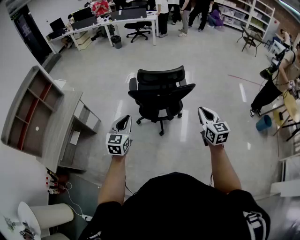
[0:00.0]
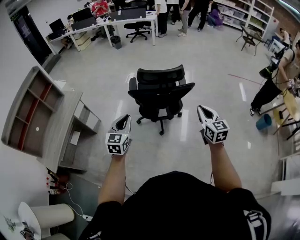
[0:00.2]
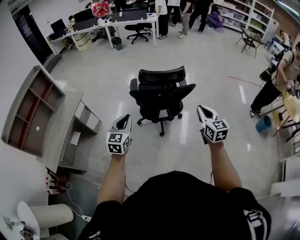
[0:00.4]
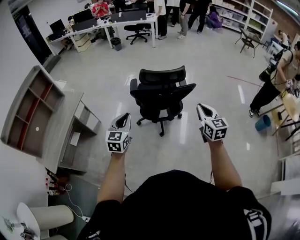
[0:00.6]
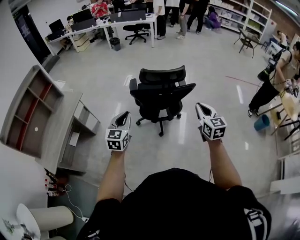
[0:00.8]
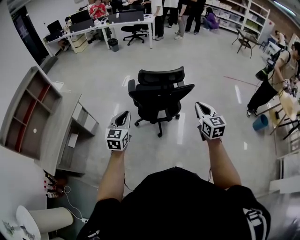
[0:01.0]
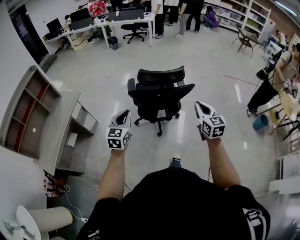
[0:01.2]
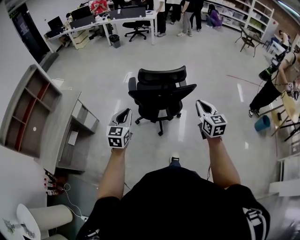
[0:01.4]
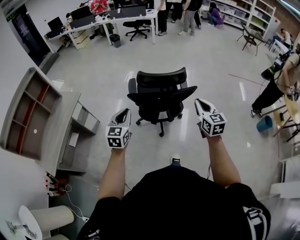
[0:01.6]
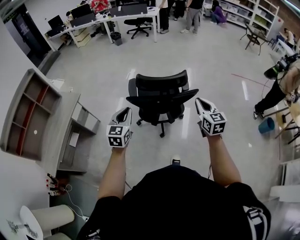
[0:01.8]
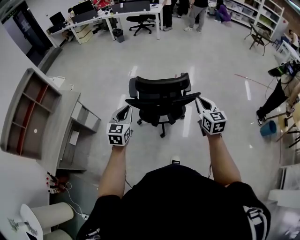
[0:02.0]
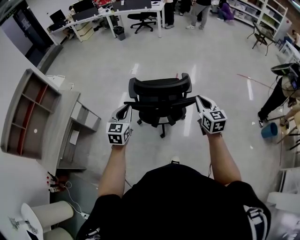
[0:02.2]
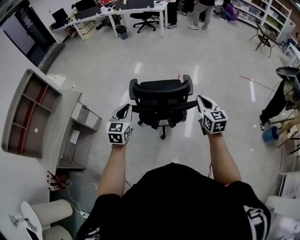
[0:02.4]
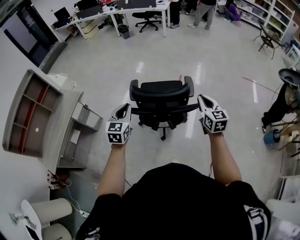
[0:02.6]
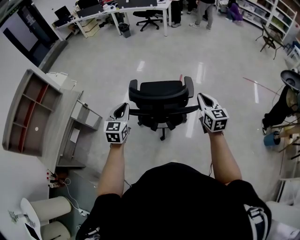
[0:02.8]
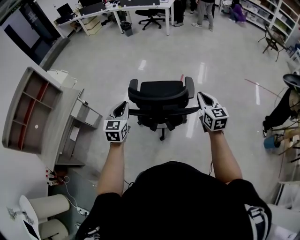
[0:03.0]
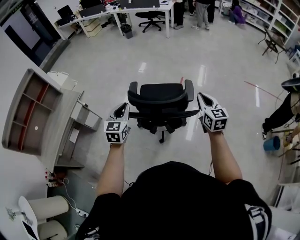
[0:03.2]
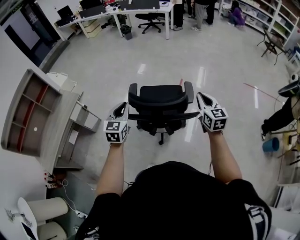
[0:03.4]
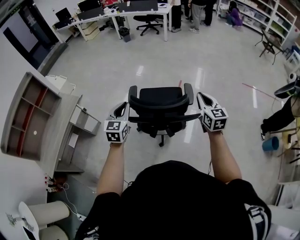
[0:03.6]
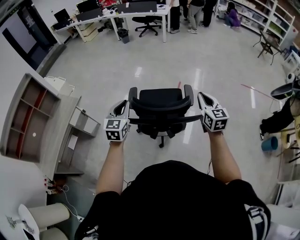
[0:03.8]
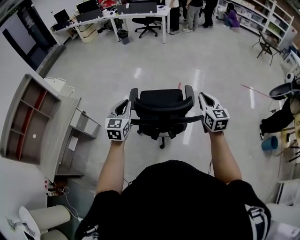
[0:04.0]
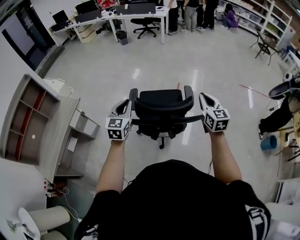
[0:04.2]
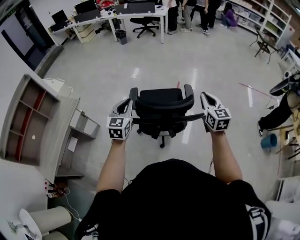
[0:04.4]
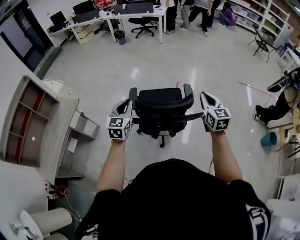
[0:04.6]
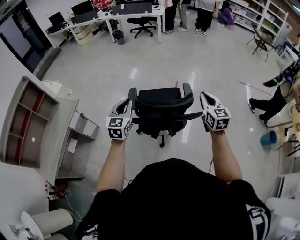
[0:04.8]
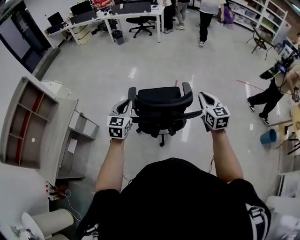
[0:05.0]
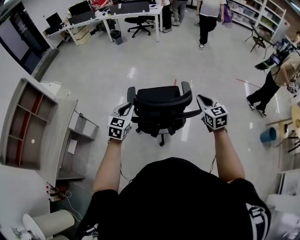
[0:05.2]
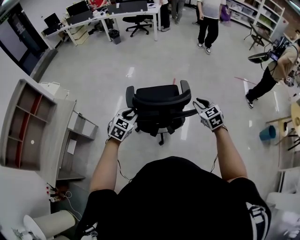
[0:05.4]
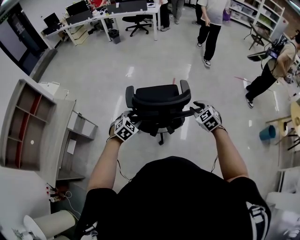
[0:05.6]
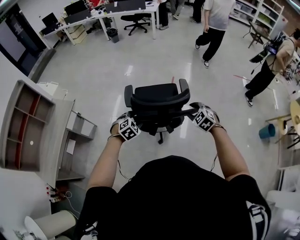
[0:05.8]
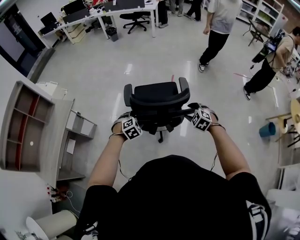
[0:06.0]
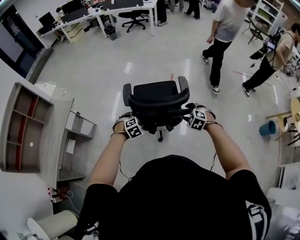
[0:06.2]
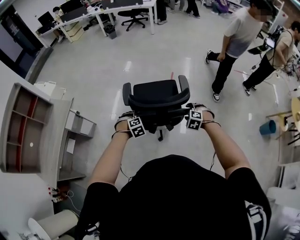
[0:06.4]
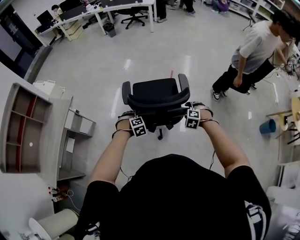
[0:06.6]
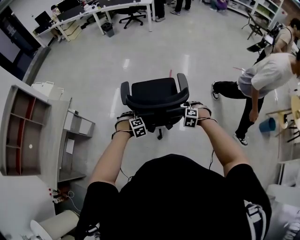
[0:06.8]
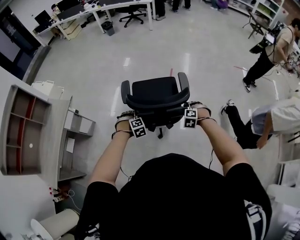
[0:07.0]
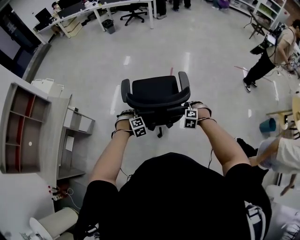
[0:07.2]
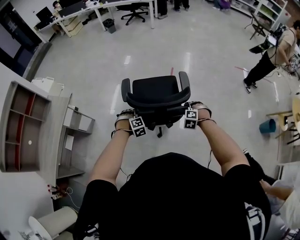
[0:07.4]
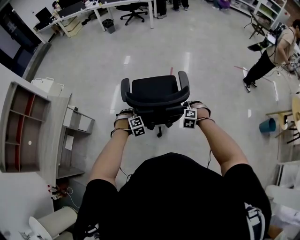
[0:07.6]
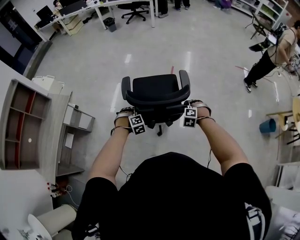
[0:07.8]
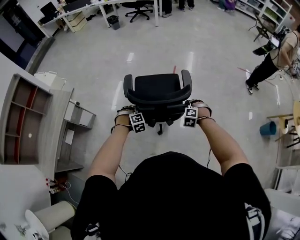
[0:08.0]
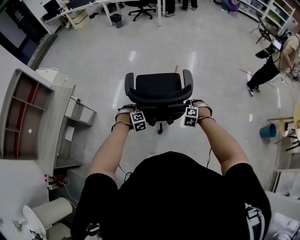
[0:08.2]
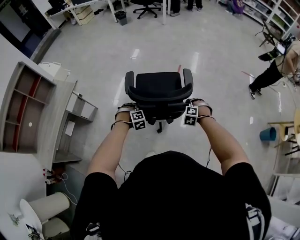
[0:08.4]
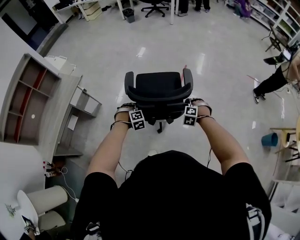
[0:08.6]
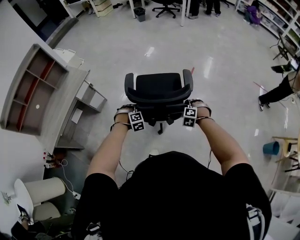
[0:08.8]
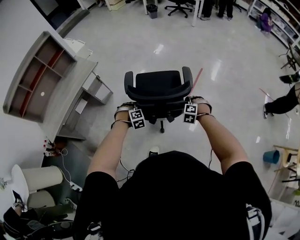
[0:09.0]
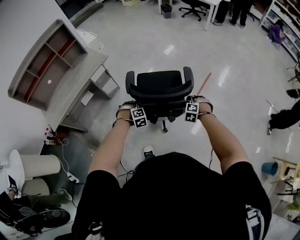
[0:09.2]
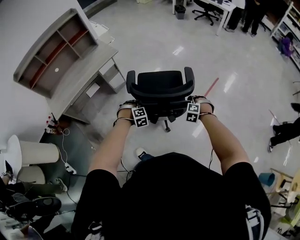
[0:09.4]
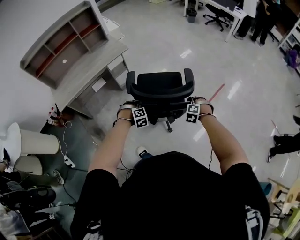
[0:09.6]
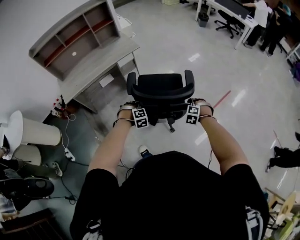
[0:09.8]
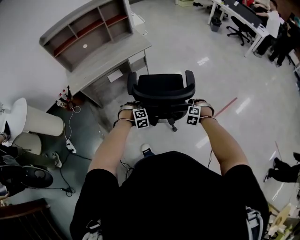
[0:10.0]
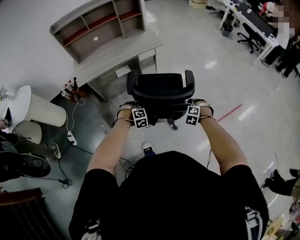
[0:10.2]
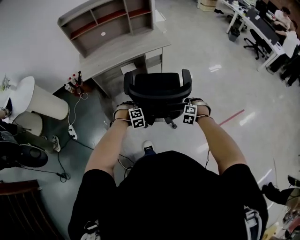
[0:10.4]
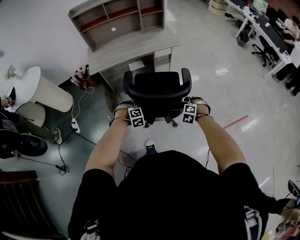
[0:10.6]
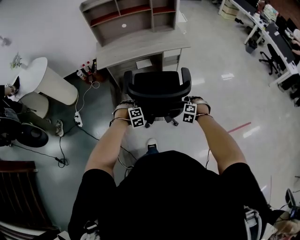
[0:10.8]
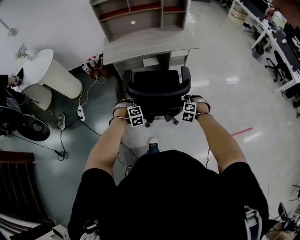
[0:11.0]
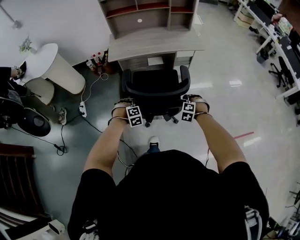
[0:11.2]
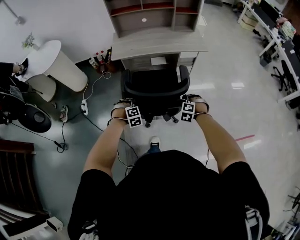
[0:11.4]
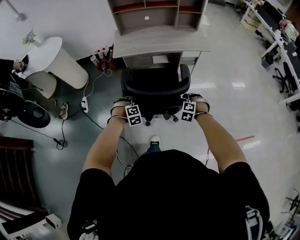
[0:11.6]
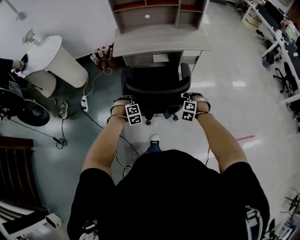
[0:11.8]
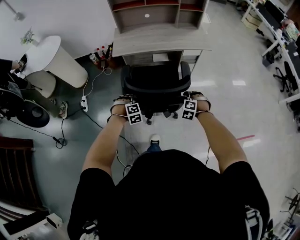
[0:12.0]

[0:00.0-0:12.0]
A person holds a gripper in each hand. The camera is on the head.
0:00.0 to 0:01.6: Both grippers travel together forward, about 10 cm.
0:01.6 to 0:03.0: Both grippers travel together forward, roughly 25 cm.
0:03.0 to 0:04.4: The right gripper changes place by some 5 cm; the left gripper shifts roughly 5 cm forward.
0:04.4 to 0:06.0: The two grippers go about 20 cm downward. The left gripper points its fingers roughly 50 degrees further downward, and opens its fingers; the right gripper tips its fingers downward by approximately 40 degrees, and opens.
0:06.0 to 0:07.6: Both grippers move downward, some 10 cm. The right gripper rotates about 30 degrees. Meanwhile the left gripper rotates approximately 20 degrees.
0:07.6 to 0:09.0: The left gripper heads to the left and backward, covering approximately 15 cm, while the right gripper travels to the left by approximately 10 cm.
0:09.0 to 0:10.4: The left gripper moves approximately 35 cm, and swivels roughly 30 degrees. Meanwhile the right gripper shifts by approximately 35 cm, and rotates roughly 30 degrees.
0:10.4 to 0:12.0: The right gripper travels to the left and forward by approximately 25 cm. The left gripper is displaced to the left by approximately 20 cm.

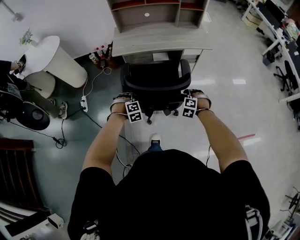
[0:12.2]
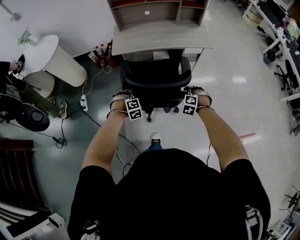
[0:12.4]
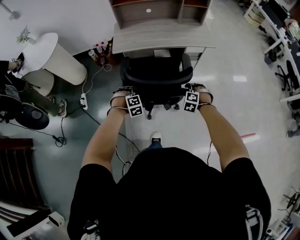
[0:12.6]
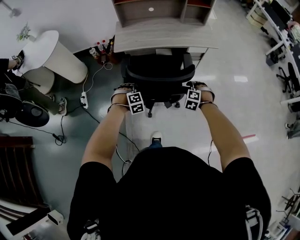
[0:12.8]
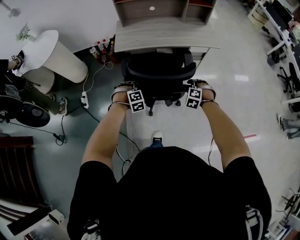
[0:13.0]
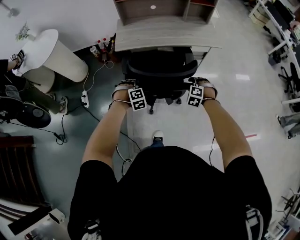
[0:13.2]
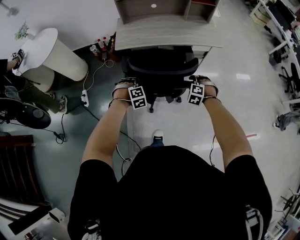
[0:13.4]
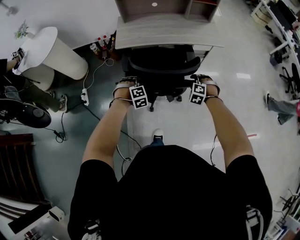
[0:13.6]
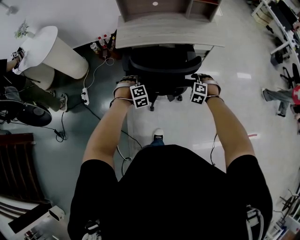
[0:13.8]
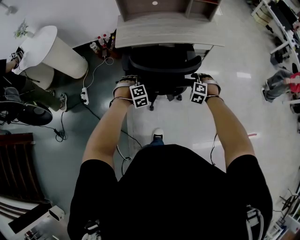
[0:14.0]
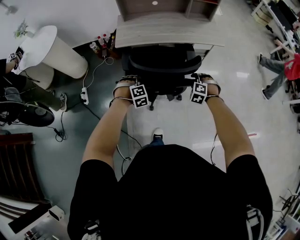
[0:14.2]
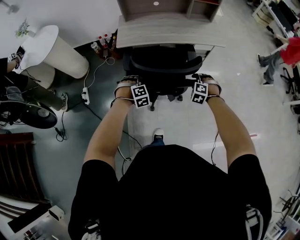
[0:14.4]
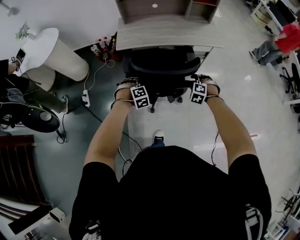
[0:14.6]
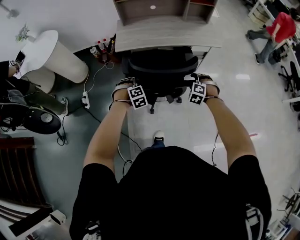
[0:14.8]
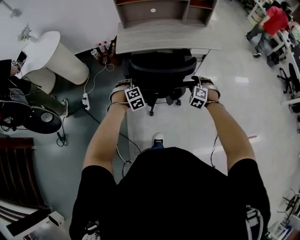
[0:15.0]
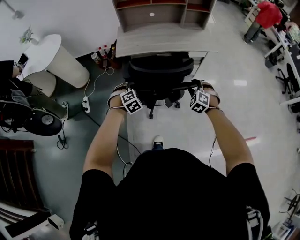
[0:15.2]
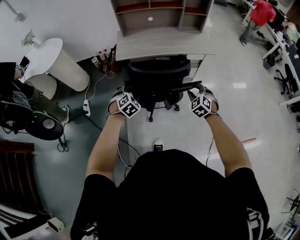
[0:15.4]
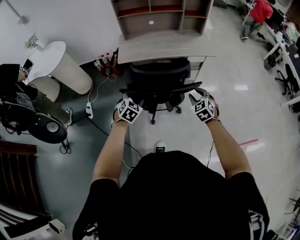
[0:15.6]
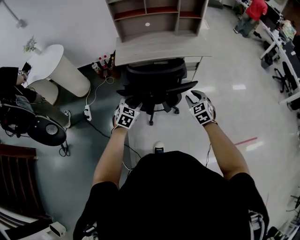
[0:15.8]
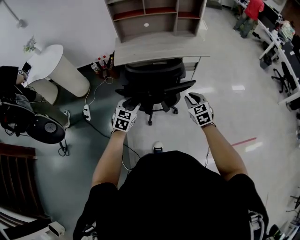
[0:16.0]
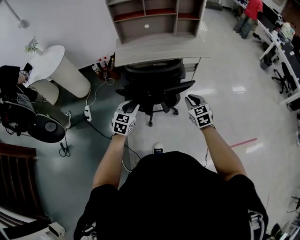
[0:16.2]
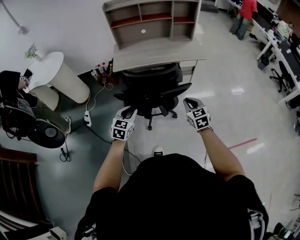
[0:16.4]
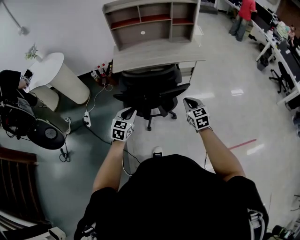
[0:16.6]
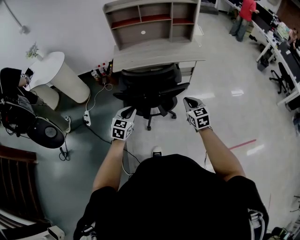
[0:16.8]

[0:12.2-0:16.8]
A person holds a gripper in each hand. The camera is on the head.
0:12.2 to 0:13.8: Both grippers move forward, roughly 10 cm.
0:13.8 to 0:15.2: The right gripper travels upward and backward by about 10 cm. The left gripper is displaced upward by roughly 5 cm.
0:15.2 to 0:16.8: The left gripper goes approximately 20 cm backward, upward and to the right, rotates approximately 50 degrees, and closes. Meanwhile the right gripper goes about 15 cm backward and upward, twists approximately 50 degrees clockwise, seen from behind, and closes its fingers.

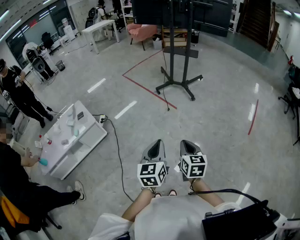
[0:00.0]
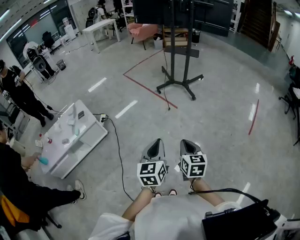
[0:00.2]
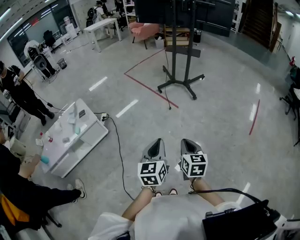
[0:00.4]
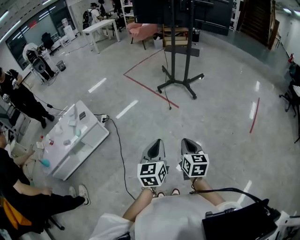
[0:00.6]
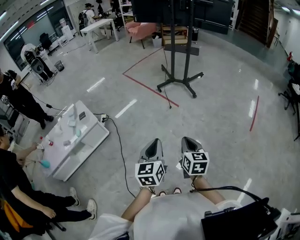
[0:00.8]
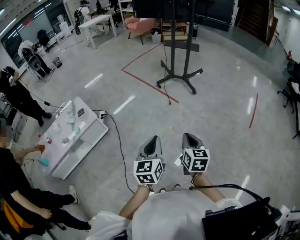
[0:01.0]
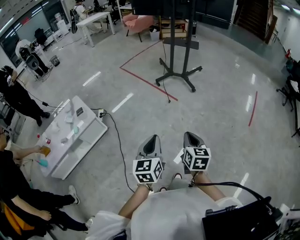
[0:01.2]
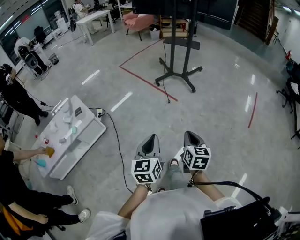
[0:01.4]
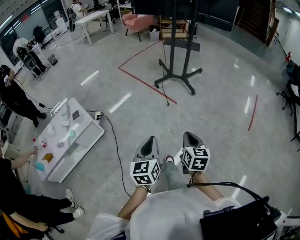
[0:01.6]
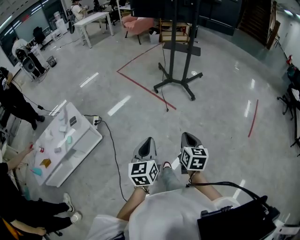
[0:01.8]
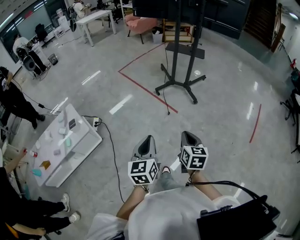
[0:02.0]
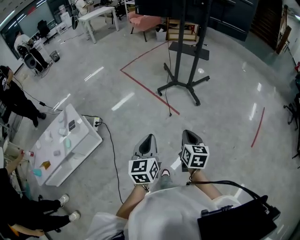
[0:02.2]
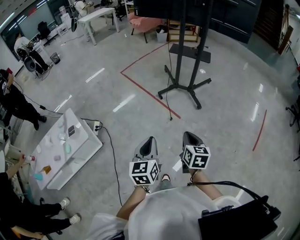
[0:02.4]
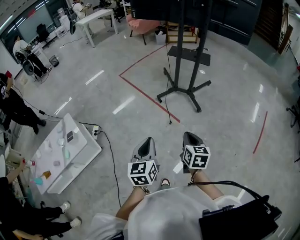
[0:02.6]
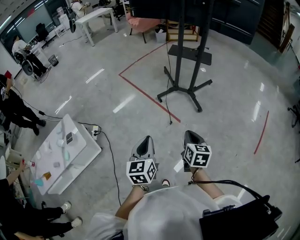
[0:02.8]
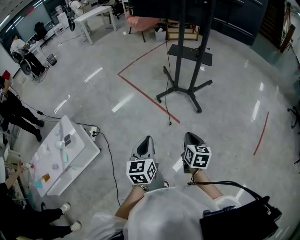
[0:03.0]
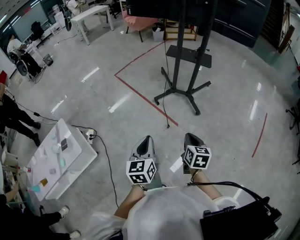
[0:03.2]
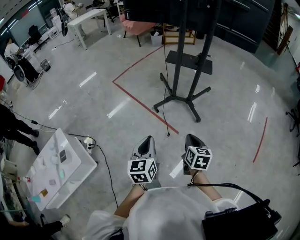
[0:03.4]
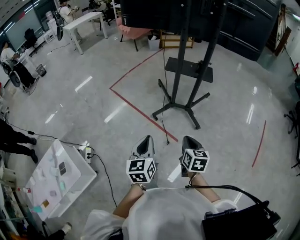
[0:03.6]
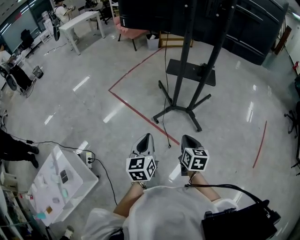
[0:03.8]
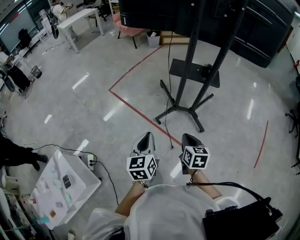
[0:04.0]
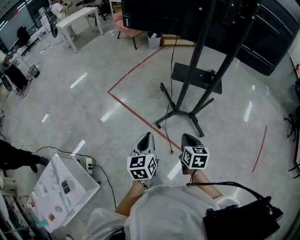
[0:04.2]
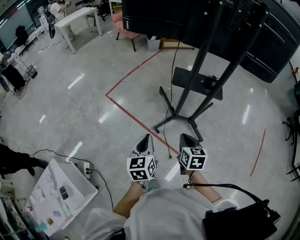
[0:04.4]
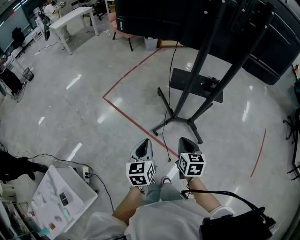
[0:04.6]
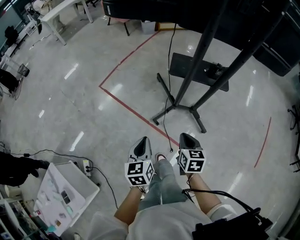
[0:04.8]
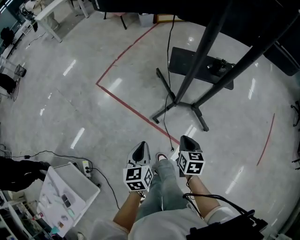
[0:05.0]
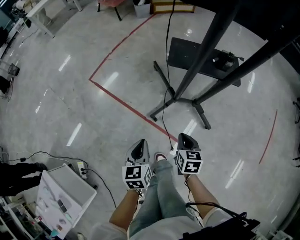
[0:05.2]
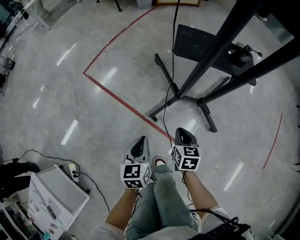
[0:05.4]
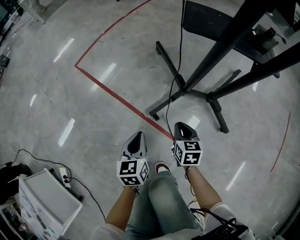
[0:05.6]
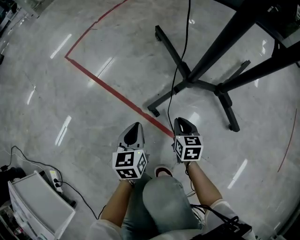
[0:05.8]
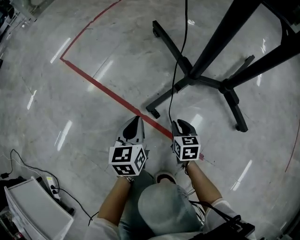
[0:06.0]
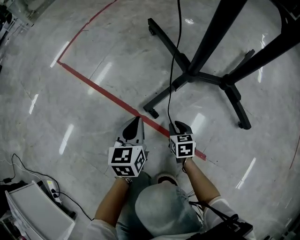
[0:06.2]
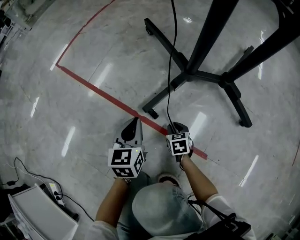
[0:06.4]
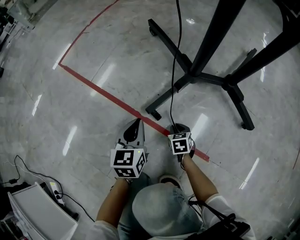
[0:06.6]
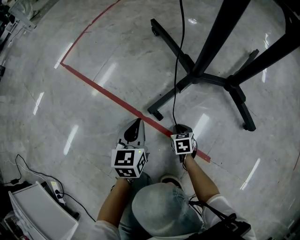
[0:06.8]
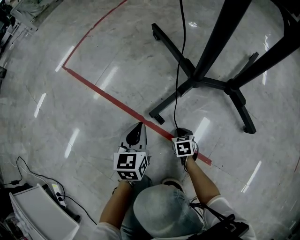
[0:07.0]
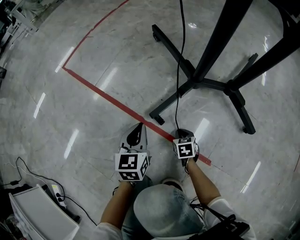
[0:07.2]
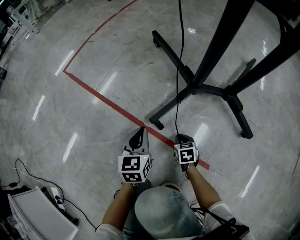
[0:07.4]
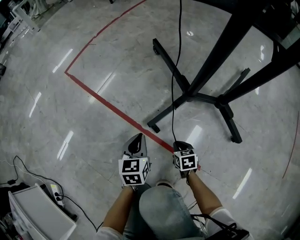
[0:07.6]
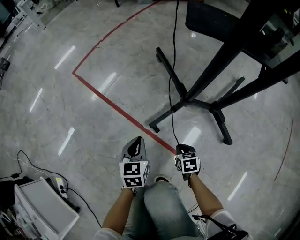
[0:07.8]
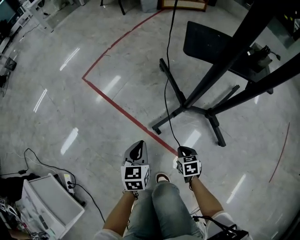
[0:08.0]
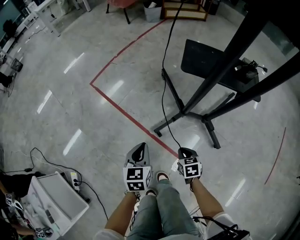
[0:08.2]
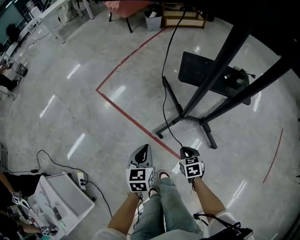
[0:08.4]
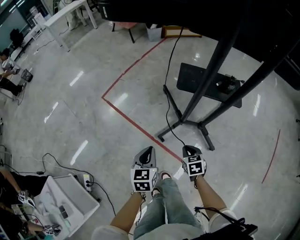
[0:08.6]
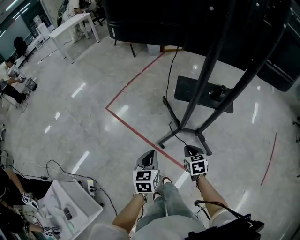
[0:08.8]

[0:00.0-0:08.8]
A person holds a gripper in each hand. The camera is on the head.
0:00.0 to 0:01.4: The left gripper shifts some 10 cm to the left; the right gripper shifts by some 5 cm.
0:01.4 to 0:03.0: Both grippers move forward, approximately 40 cm.
0:03.0 to 0:04.4: The pair of grippers is taken forward, roughly 40 cm.
0:04.4 to 0:05.8: Both grippers travel together downward, about 60 cm.
0:05.8 to 0:07.4: The left gripper heads downward, covering approximately 10 cm. The right gripper goes some 20 cm downward.
0:07.4 to 0:08.8: The grippers both shift upward by some 60 cm.
